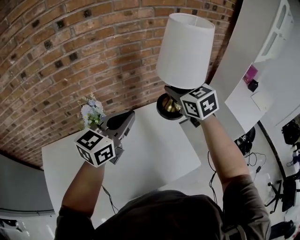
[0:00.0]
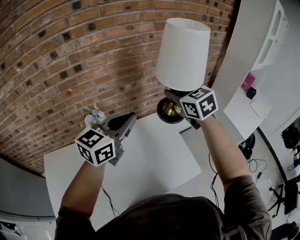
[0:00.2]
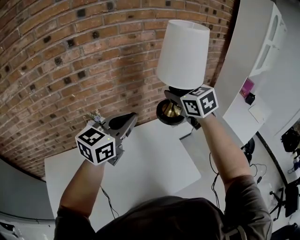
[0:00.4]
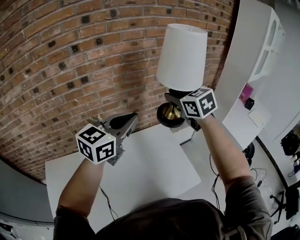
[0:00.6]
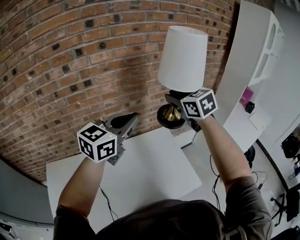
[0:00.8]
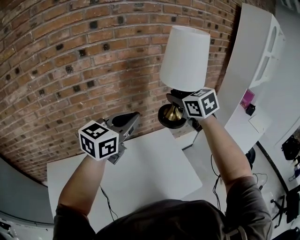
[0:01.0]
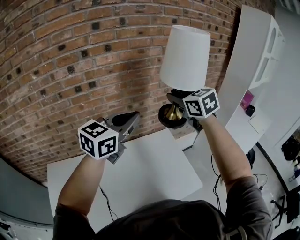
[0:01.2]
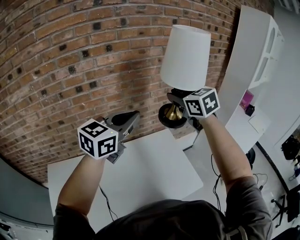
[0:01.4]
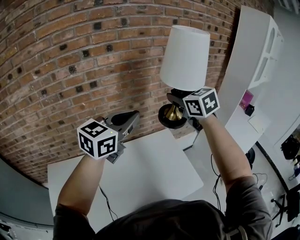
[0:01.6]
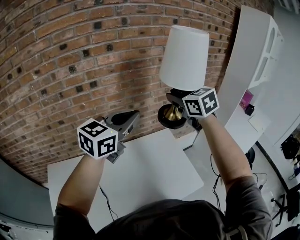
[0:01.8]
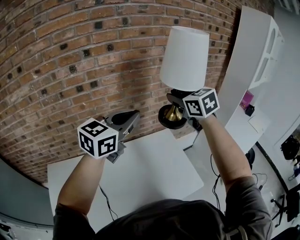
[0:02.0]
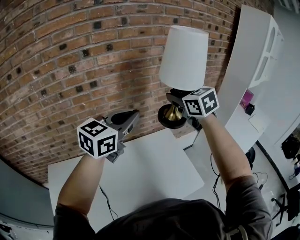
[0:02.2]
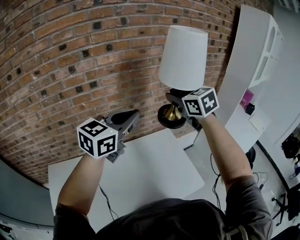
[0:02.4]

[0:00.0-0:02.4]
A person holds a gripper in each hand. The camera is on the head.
0:00.0 to 0:01.2: The grippers both shift upward by approximately 10 cm.
0:01.2 to 0:02.4: Both grippers stay about where they are.

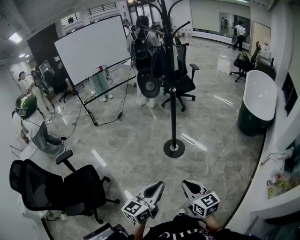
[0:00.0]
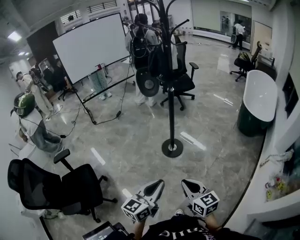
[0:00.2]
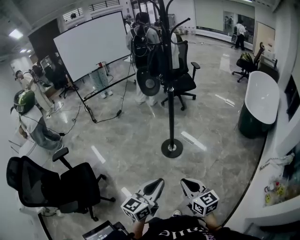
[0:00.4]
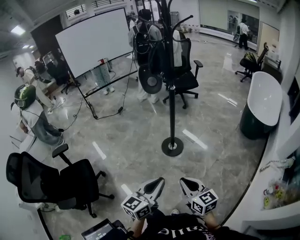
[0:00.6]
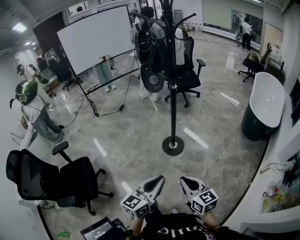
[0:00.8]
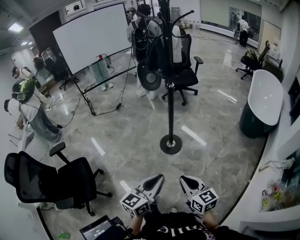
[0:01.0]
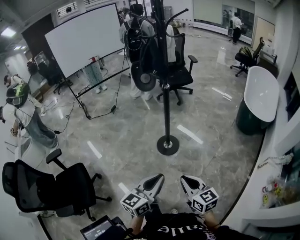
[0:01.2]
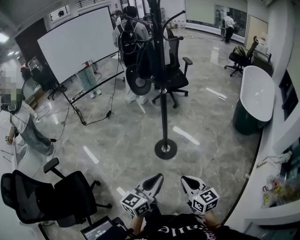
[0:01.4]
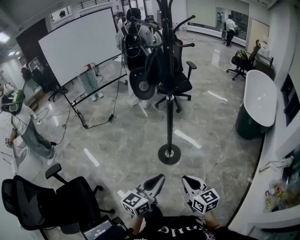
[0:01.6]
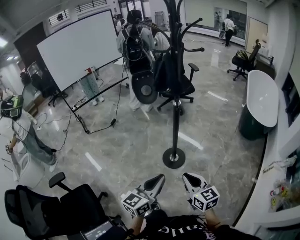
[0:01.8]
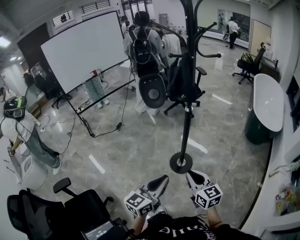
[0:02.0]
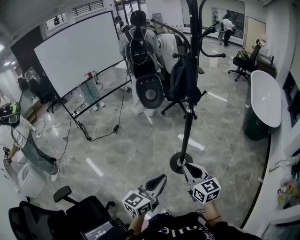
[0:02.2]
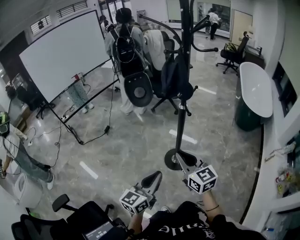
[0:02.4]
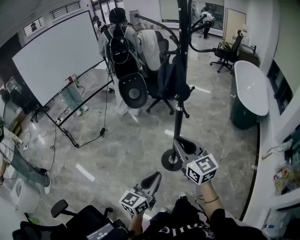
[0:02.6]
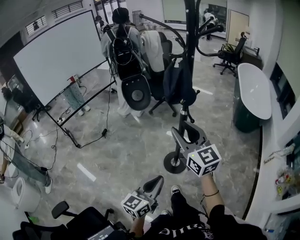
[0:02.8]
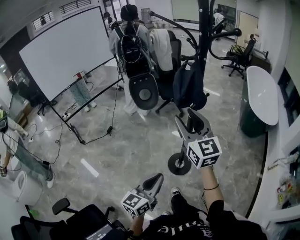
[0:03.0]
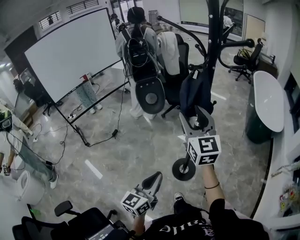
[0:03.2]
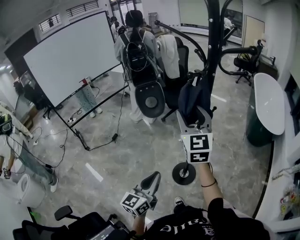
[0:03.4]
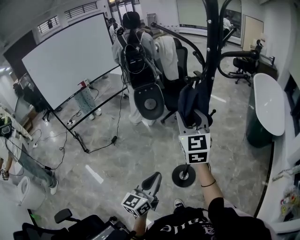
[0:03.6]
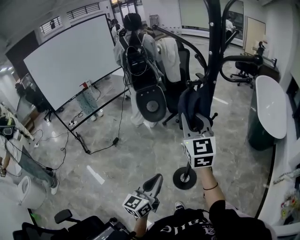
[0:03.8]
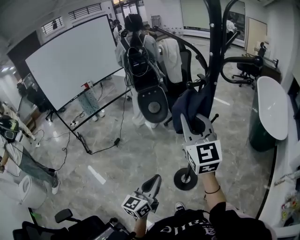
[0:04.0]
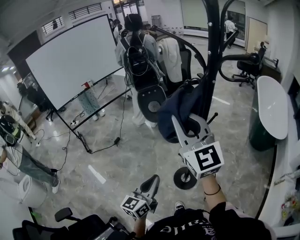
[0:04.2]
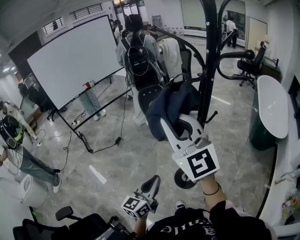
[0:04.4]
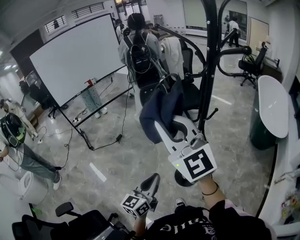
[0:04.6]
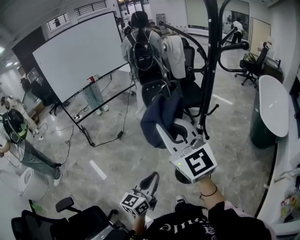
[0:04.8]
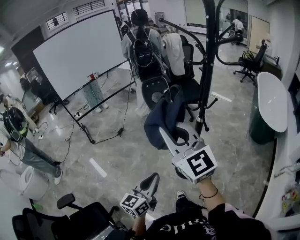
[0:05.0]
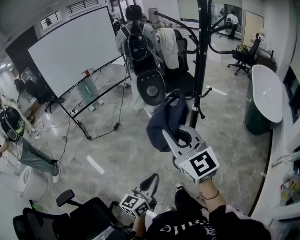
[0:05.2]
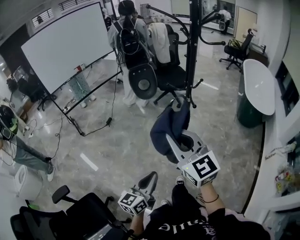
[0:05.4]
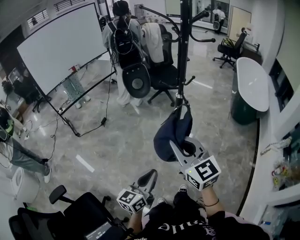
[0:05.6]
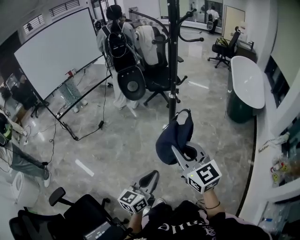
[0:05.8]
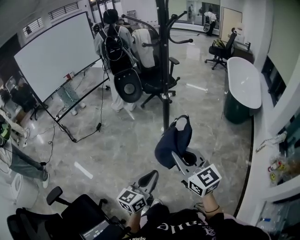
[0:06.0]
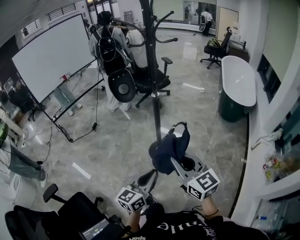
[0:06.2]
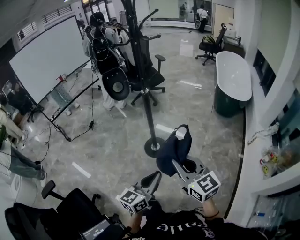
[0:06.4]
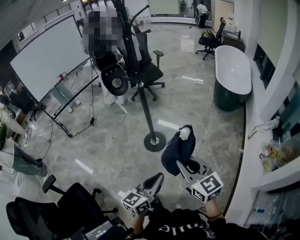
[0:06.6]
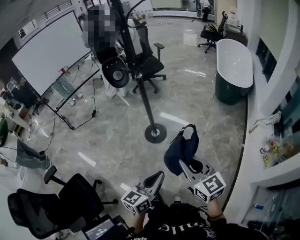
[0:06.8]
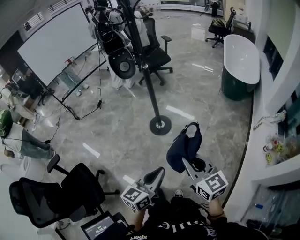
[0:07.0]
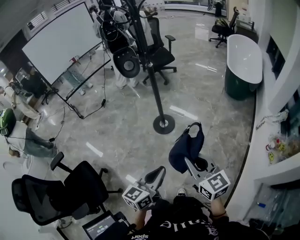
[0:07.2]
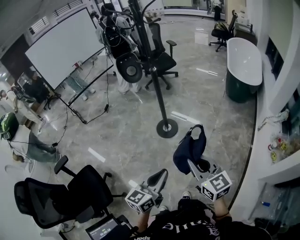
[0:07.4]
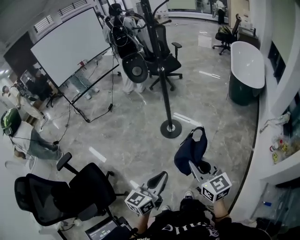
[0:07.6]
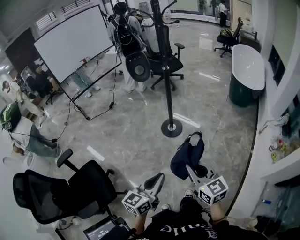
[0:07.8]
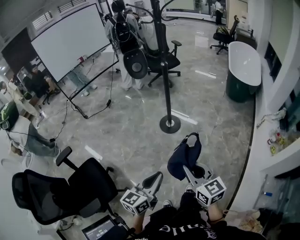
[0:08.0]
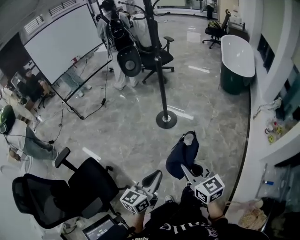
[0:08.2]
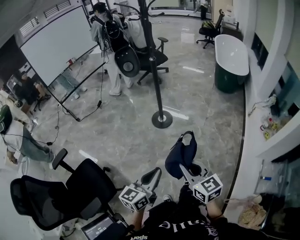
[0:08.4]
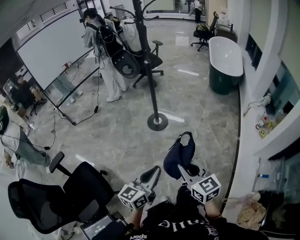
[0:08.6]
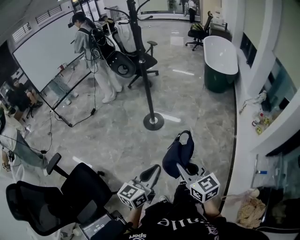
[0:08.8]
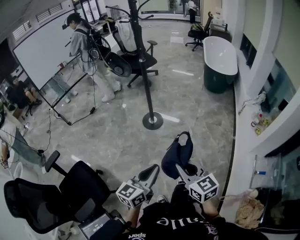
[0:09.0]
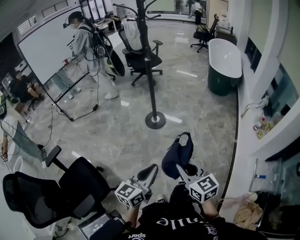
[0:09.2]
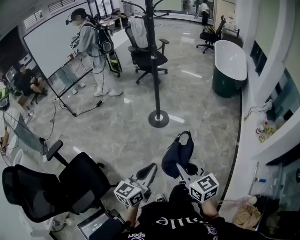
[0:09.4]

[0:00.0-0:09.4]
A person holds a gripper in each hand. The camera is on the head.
0:00.0 to 0:01.6: Both grippers travel together forward, some 20 cm.
0:01.6 to 0:03.2: The right gripper moves forward, upward and to the left, roughly 50 cm, rotates about 40 degrees, and opens. Meanwhile the left gripper heads to the left and forward, covering some 35 cm.
0:03.2 to 0:04.8: The right gripper shifts approximately 15 cm backward, to the left and upward, changes its angle by roughly 30 degrees, and closes. Meanwhile the left gripper moves roughly 5 cm forward and comes back.
0:04.8 to 0:06.2: The left gripper travels backward and to the right by roughly 30 cm, while the right gripper heads backward, to the right and downward, covering some 40 cm, and changes its angle by about 30 degrees.
0:06.2 to 0:07.8: Both grippers move backward, roughly 30 cm.
0:07.8 to 0:09.4: The two grippers go about 10 cm backward.

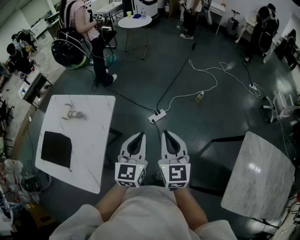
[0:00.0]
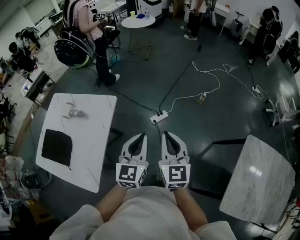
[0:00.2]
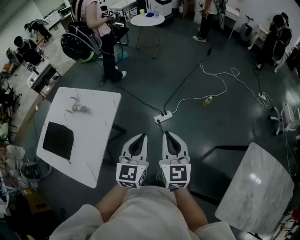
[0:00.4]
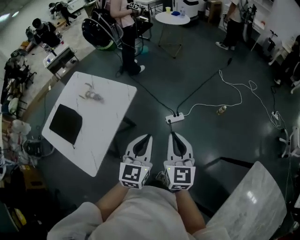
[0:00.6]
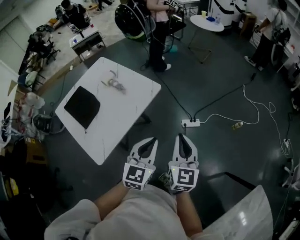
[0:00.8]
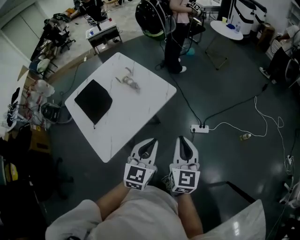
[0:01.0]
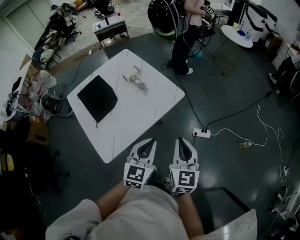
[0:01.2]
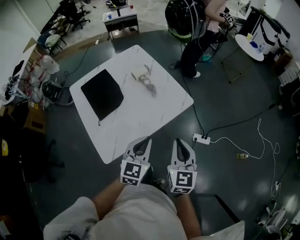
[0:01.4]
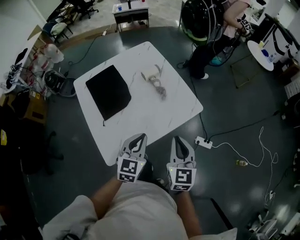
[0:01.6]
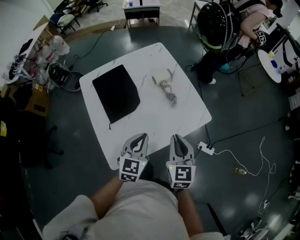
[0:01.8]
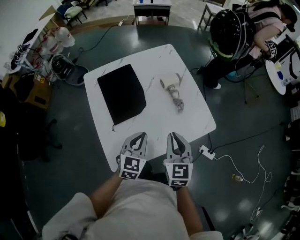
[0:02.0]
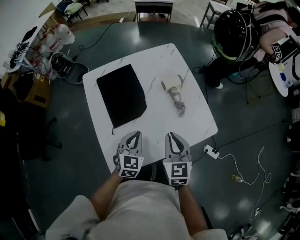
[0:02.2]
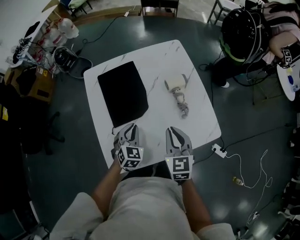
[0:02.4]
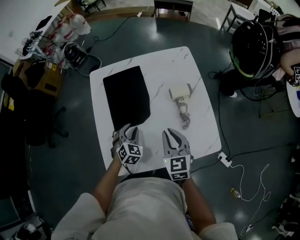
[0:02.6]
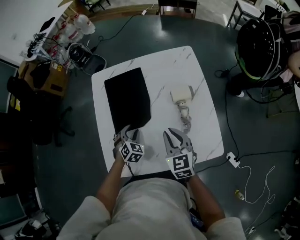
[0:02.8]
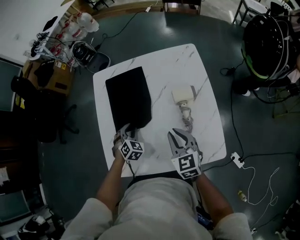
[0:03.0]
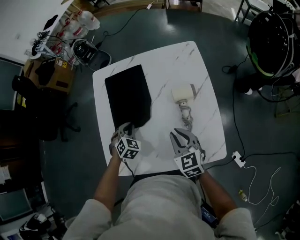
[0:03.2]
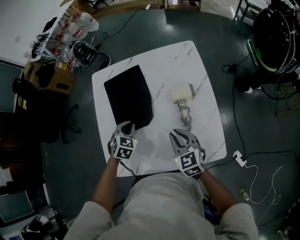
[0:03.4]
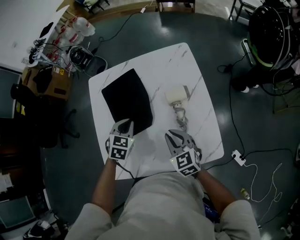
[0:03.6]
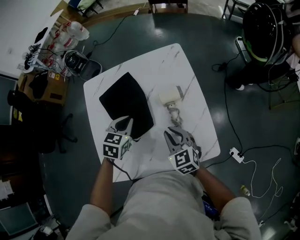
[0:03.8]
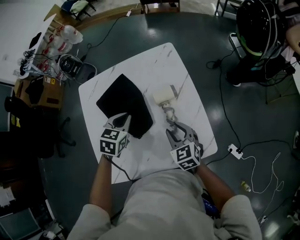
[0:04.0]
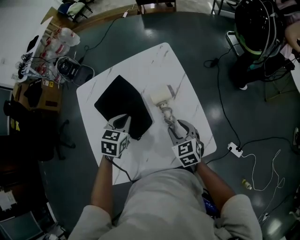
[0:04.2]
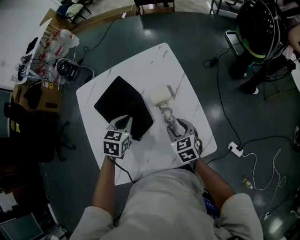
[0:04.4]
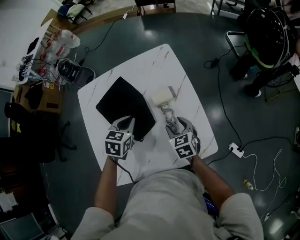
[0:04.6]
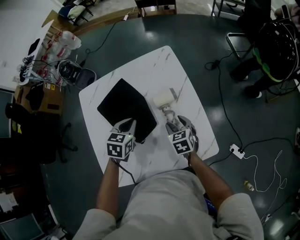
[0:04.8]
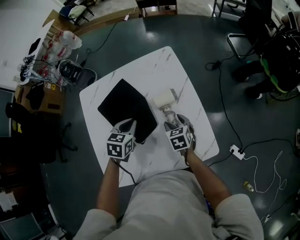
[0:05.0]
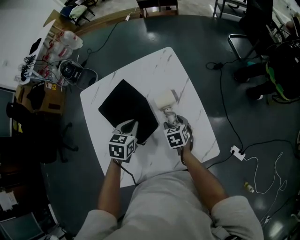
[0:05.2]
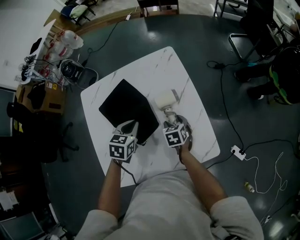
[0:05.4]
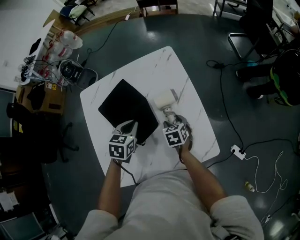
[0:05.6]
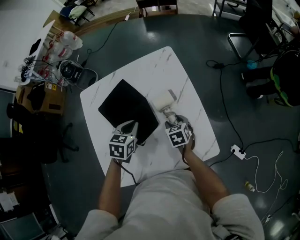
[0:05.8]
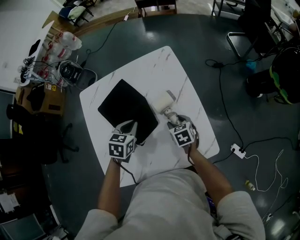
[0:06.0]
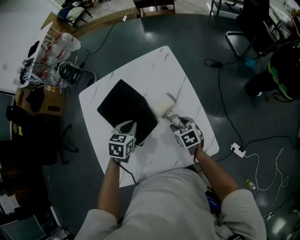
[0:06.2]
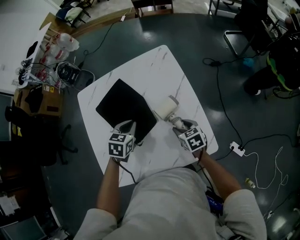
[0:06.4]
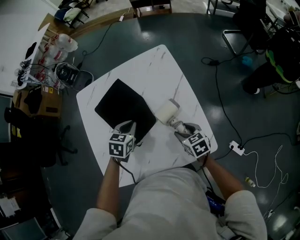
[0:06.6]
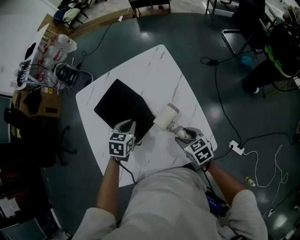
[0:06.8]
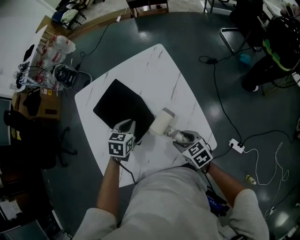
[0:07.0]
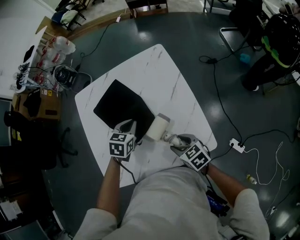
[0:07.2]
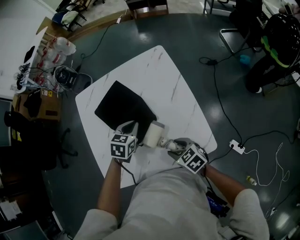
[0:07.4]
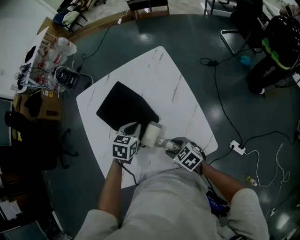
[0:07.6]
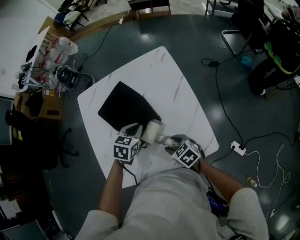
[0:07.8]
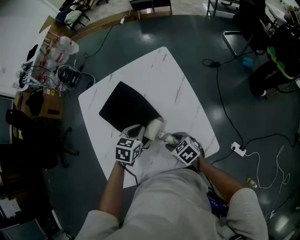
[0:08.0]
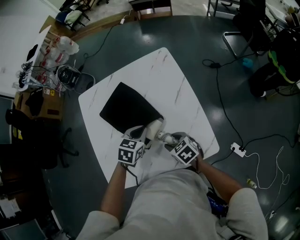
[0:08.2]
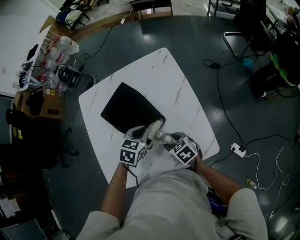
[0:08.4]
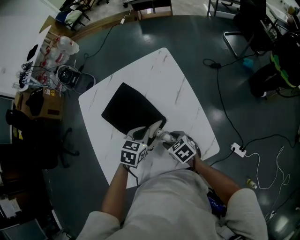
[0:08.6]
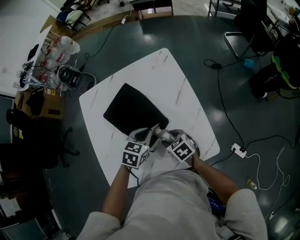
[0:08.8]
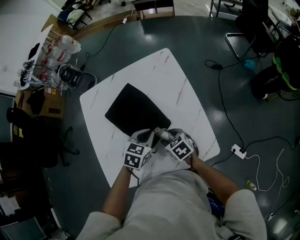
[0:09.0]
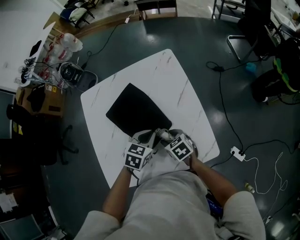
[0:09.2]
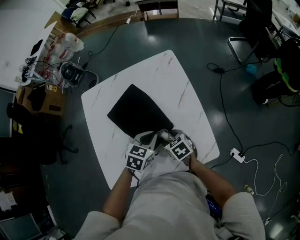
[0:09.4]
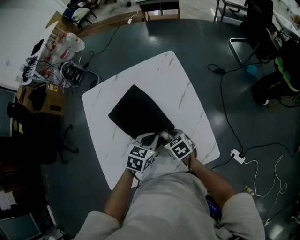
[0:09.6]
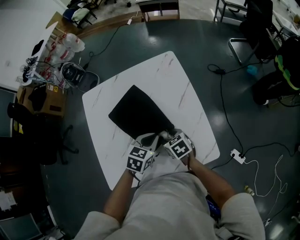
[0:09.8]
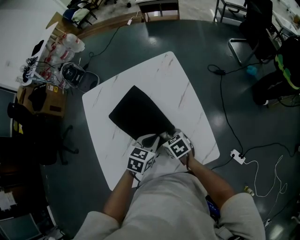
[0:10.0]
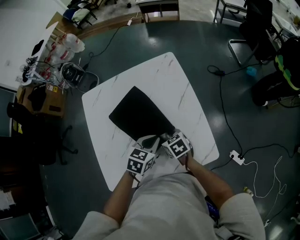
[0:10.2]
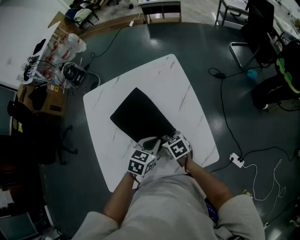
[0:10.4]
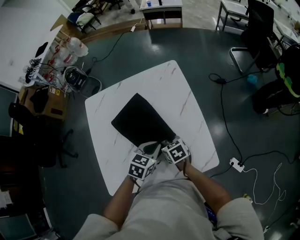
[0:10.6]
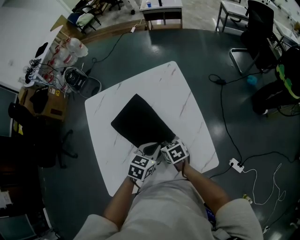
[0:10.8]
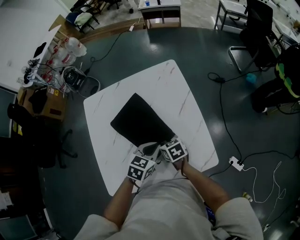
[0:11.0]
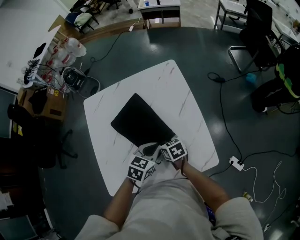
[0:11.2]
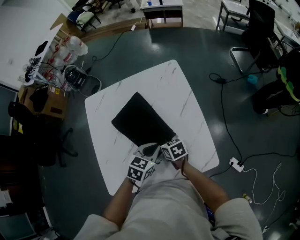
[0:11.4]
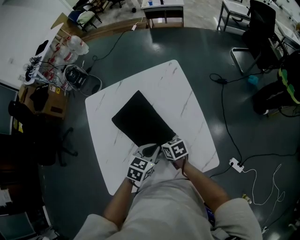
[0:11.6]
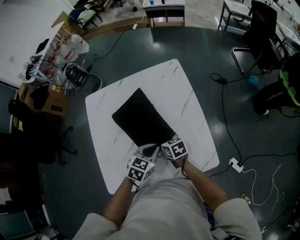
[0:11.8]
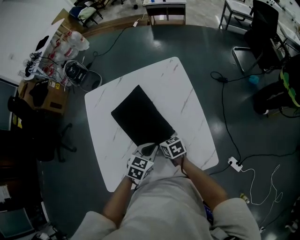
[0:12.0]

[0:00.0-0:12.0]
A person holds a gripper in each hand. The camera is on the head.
0:00.0 to 0:01.6: The left gripper shifts by some 35 cm, and turns by some 50 degrees; the right gripper moves some 35 cm, and swivels roughly 50 degrees.
0:01.6 to 0:03.0: The left gripper ends up some 35 cm from where it was, swivels about 50 degrees, and opens; the right gripper changes place by some 30 cm, and turns by roughly 50 degrees.
0:03.0 to 0:04.4: The right gripper travels to the right and downward by some 10 cm, and opens. The left gripper shifts about 15 cm to the right and upward, changes its angle by about 30 degrees, and closes.
0:04.4 to 0:06.0: The right gripper goes about 5 cm downward.
0:06.0 to 0:07.6: The right gripper heads backward, covering some 15 cm, and swivels approximately 30 degrees.
0:07.6 to 0:09.0: The right gripper travels forward by approximately 5 cm.
0:09.0 to 0:10.4: The grippers stay close to where they were, moving slightly.
0:10.4 to 0:12.0: The grippers stay close to where they were, moving slightly.
